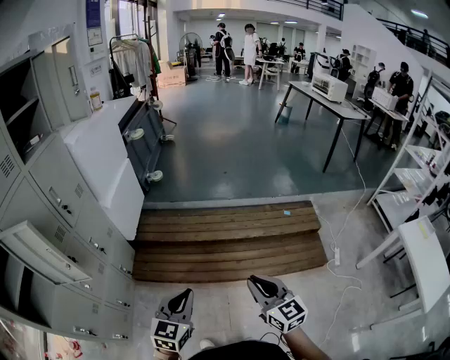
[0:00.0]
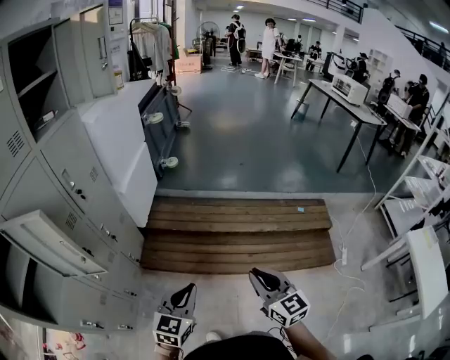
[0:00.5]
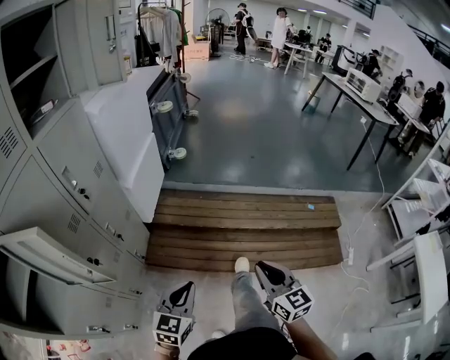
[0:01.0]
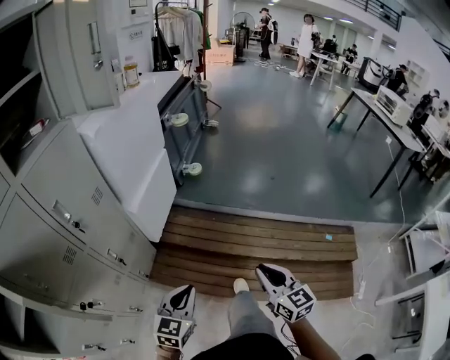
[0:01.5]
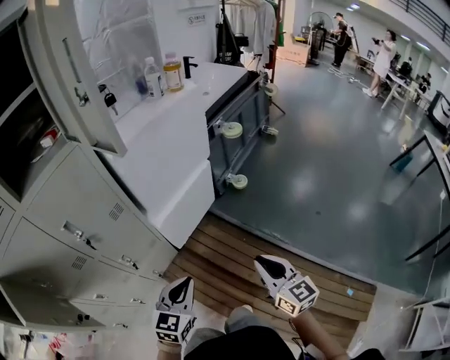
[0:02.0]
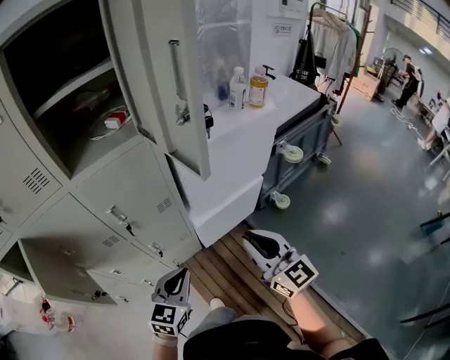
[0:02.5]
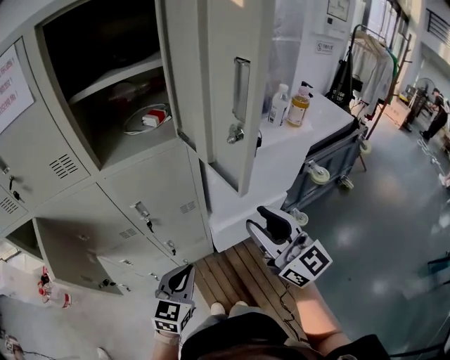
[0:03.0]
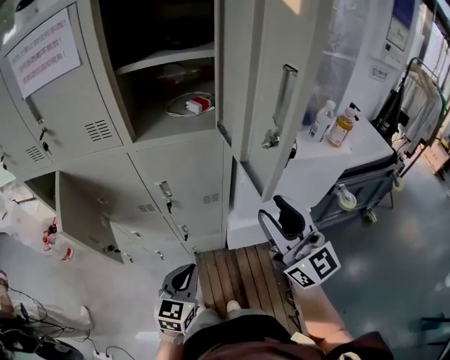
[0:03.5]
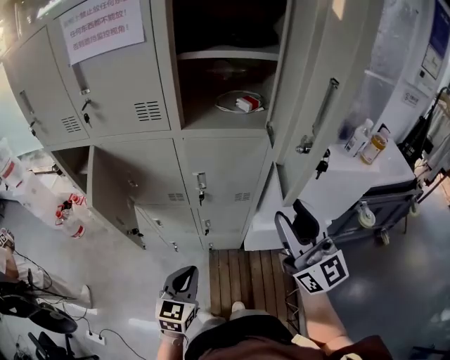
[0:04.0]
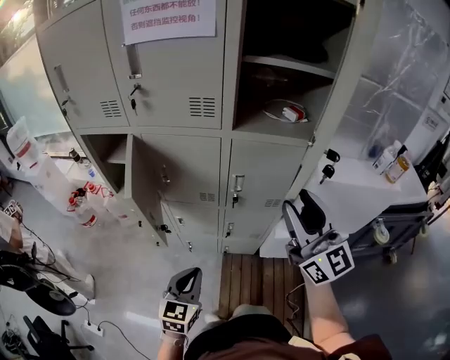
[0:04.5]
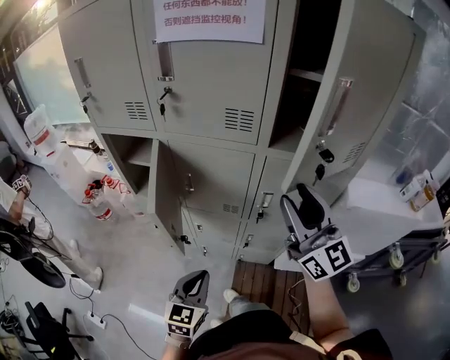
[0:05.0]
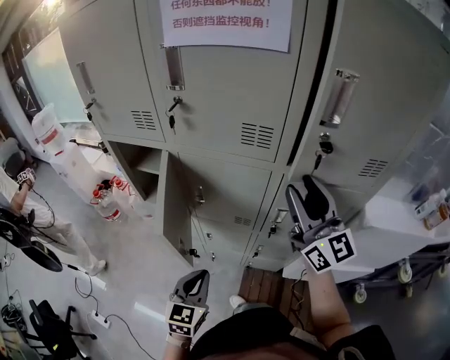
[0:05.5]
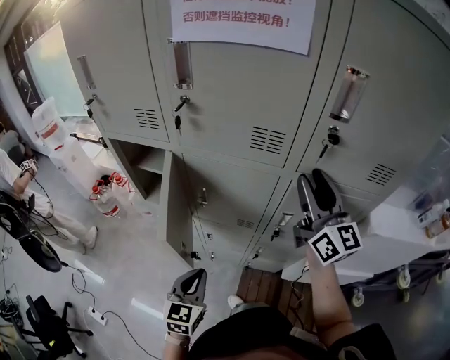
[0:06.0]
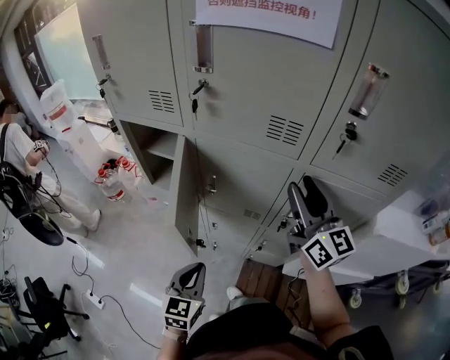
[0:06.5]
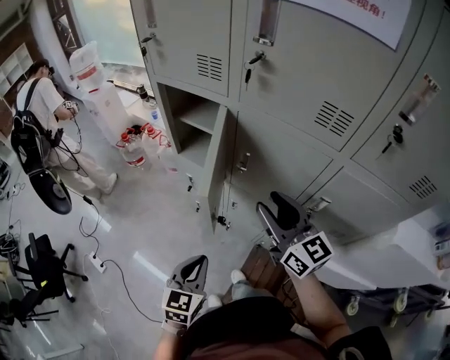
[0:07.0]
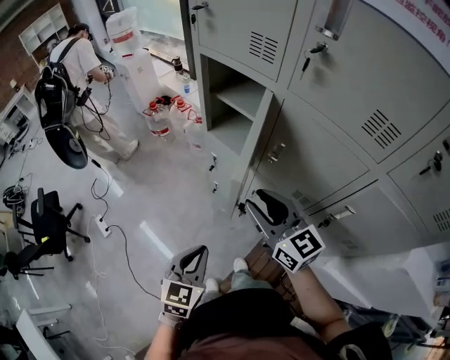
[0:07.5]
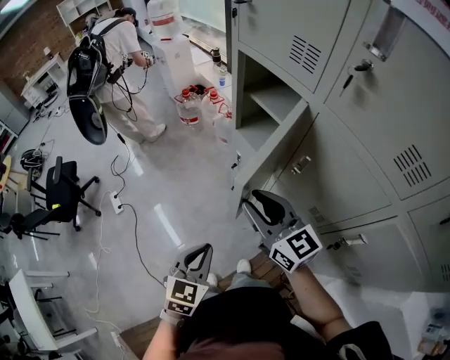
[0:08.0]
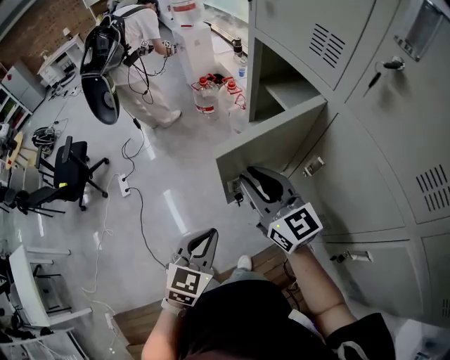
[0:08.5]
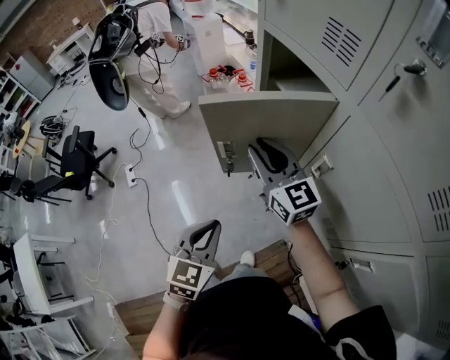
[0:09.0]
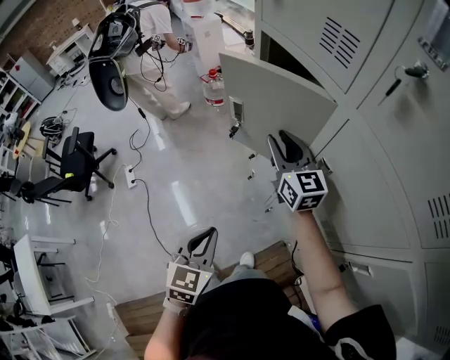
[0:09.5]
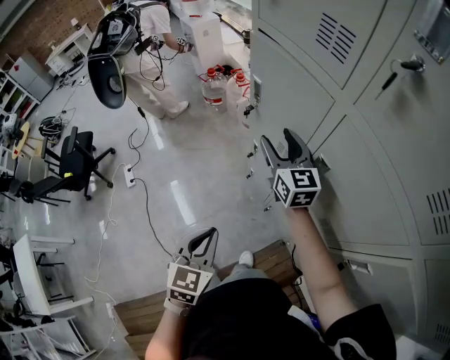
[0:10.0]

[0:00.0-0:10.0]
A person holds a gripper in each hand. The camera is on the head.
0:00.0 to 0:02.0: Both grippers are carried roughly 60 cm. The left gripper changes its angle by some 40 degrees, while the right gripper changes its angle by approximately 30 degrees.
0:02.0 to 0:04.0: The right gripper moves some 40 cm, changes its angle by approximately 60 degrees, and opens its fingers; the left gripper ends up about 20 cm from where it was, and swivels approximately 60 degrees.
0:04.0 to 0:06.0: The right gripper shifts some 30 cm forward and to the left. Meanwhile the left gripper travels to the left and forward by about 20 cm.
0:06.0 to 0:08.0: The left gripper shifts by about 15 cm, and turns by roughly 30 degrees, while the right gripper moves about 40 cm, and turns by about 60 degrees.
0:08.0 to 0:10.0: The right gripper shifts some 20 cm forward, and opens its fingers. Meanwhile the left gripper shifts by some 5 cm.

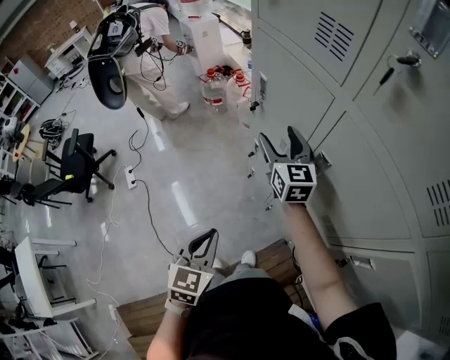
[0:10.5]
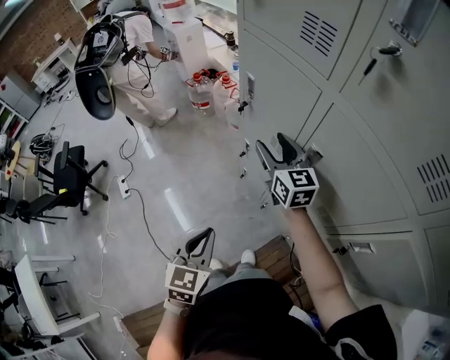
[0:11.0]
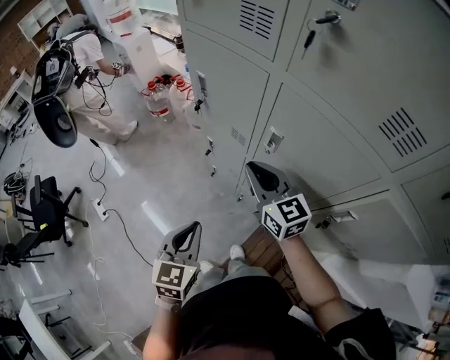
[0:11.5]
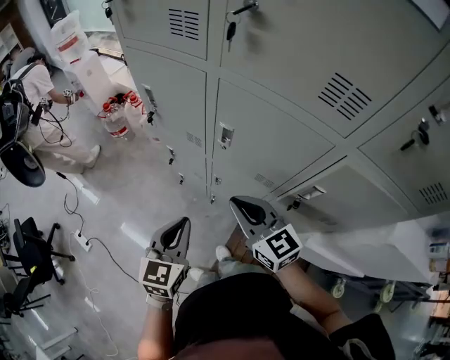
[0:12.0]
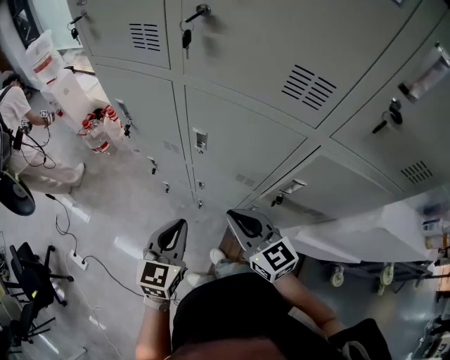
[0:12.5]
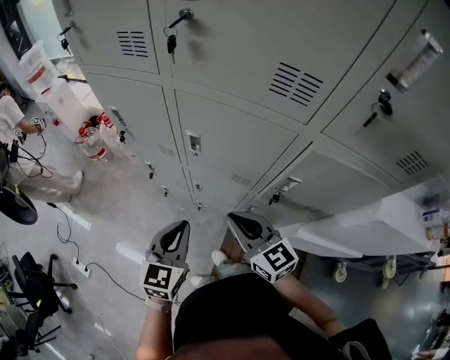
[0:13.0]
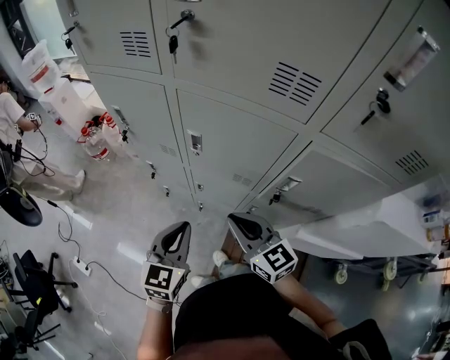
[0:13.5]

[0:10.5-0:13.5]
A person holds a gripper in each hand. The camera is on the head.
0:10.5 to 0:12.0: The left gripper heads to the right, covering approximately 5 cm, and changes its angle by some 30 degrees, while the right gripper shifts approximately 25 cm backward, and closes its fingers.
0:12.0 to 0:13.5: The left gripper moves some 5 cm. Meanwhile the right gripper ends up approximately 5 cm from where it was.

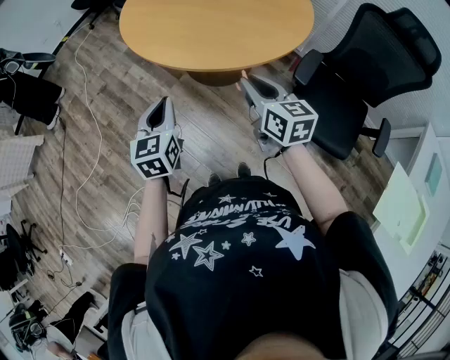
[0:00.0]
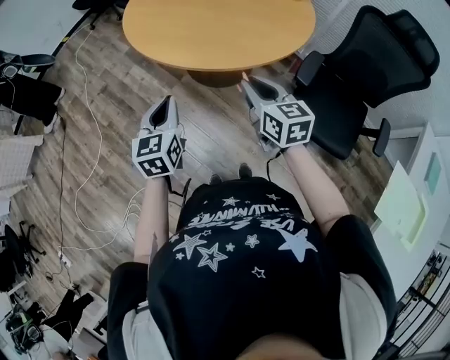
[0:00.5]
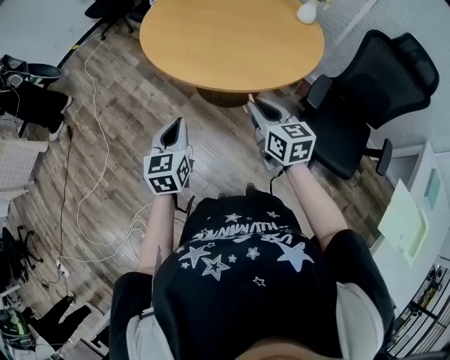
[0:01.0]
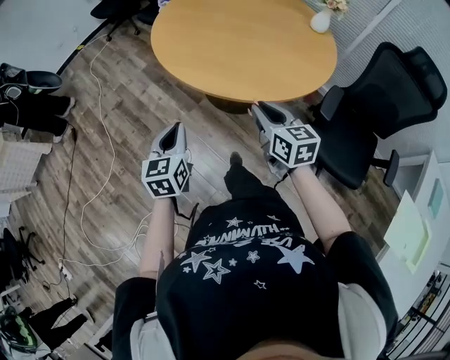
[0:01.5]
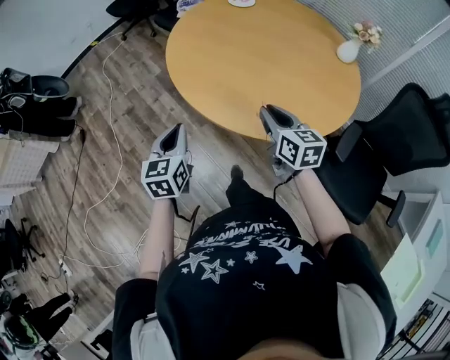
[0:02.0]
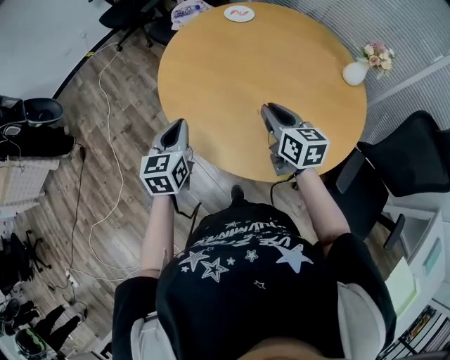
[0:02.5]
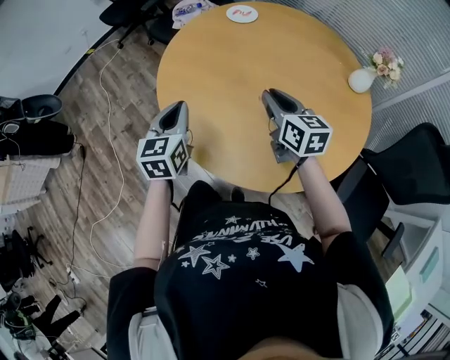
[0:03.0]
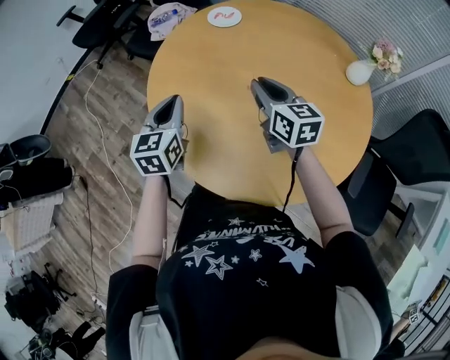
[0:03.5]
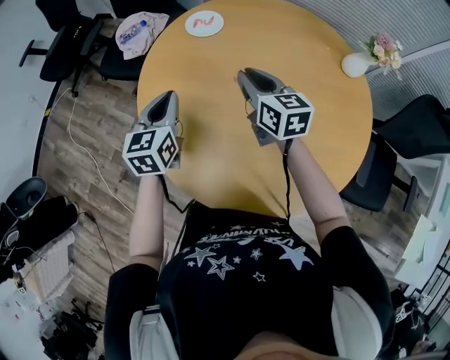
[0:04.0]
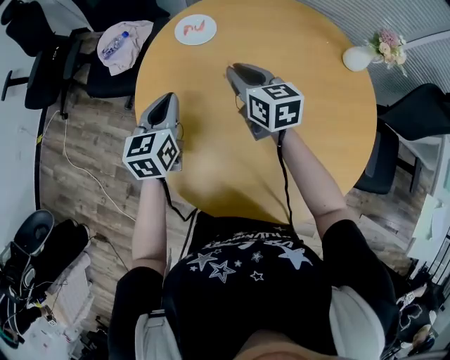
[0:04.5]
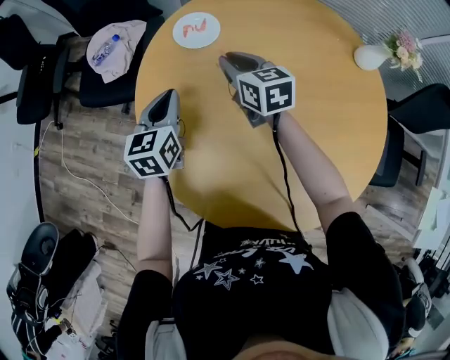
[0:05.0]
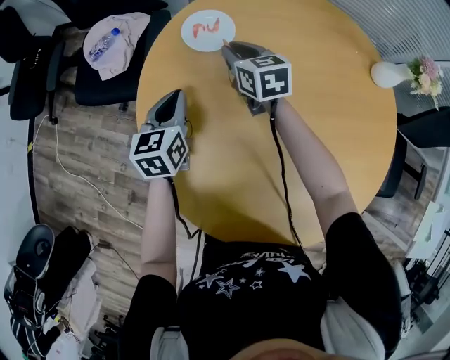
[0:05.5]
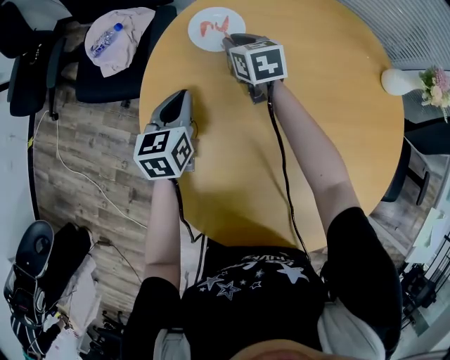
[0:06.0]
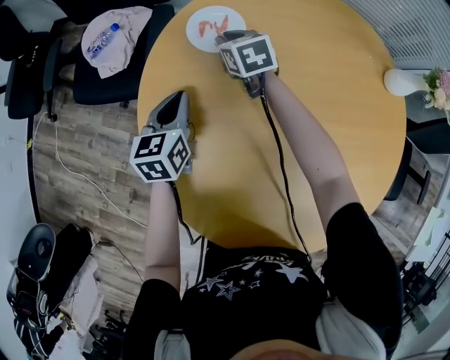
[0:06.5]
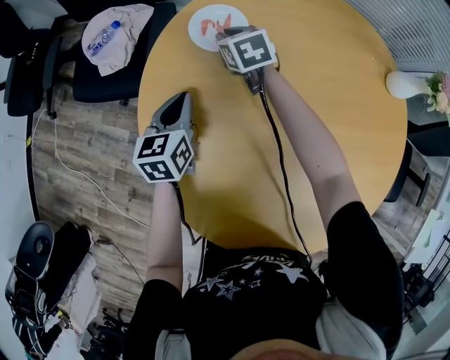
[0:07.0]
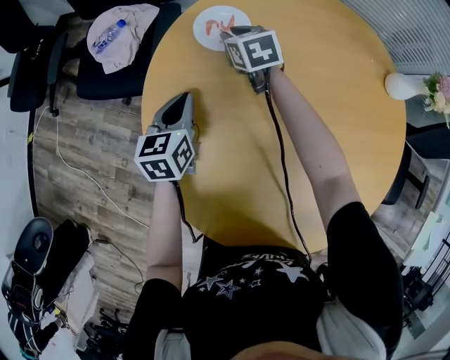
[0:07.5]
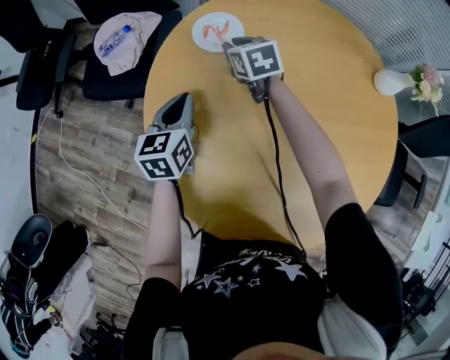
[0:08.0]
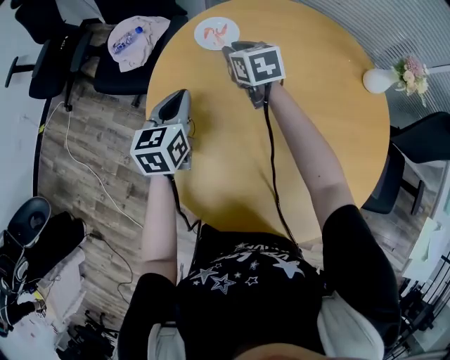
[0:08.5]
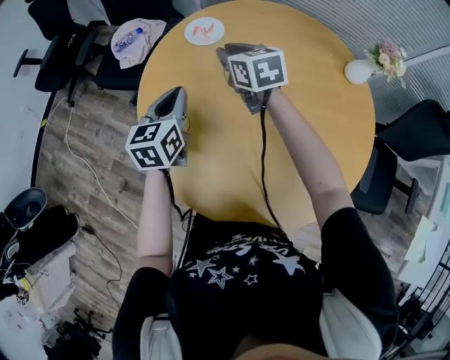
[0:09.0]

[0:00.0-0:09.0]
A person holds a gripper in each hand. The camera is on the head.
0:00.0 to 0:02.0: The two grippers go some 25 cm forward and to the left.
0:02.0 to 0:04.5: Both grippers are carried approximately 60 cm. The right gripper swivels about 20 degrees. Meanwhile the left gripper swivels some 30 degrees.
0:04.5 to 0:07.0: The left gripper is displaced downward and forward by approximately 20 cm. The right gripper shifts approximately 30 cm forward and downward, and swivels some 30 degrees.
0:07.0 to 0:09.0: The grippers both shift upward and backward by some 25 cm.

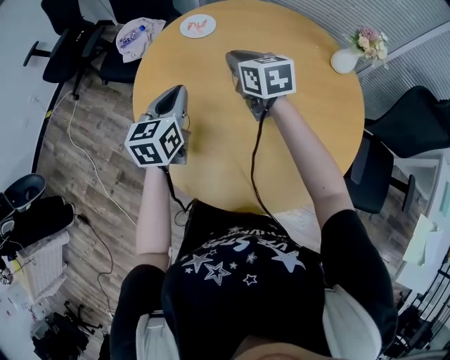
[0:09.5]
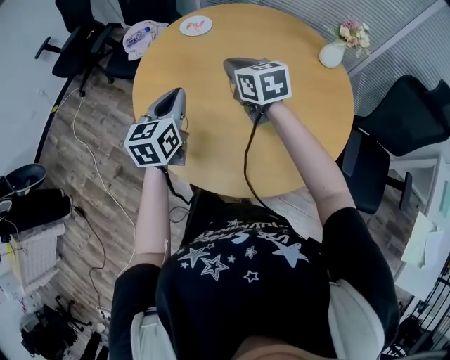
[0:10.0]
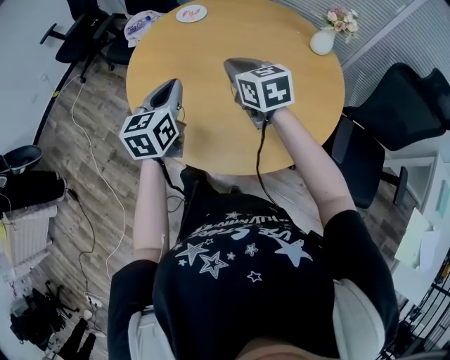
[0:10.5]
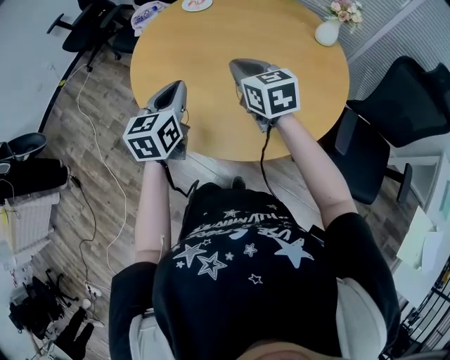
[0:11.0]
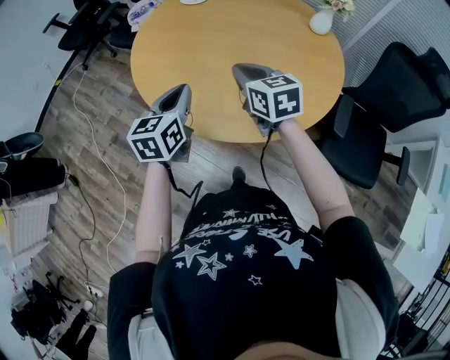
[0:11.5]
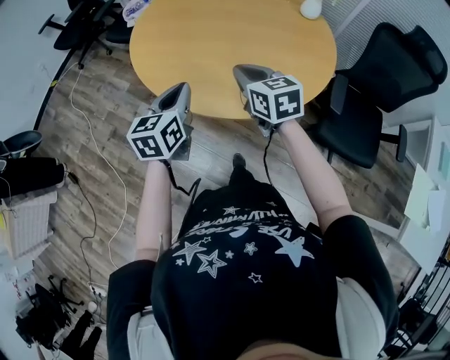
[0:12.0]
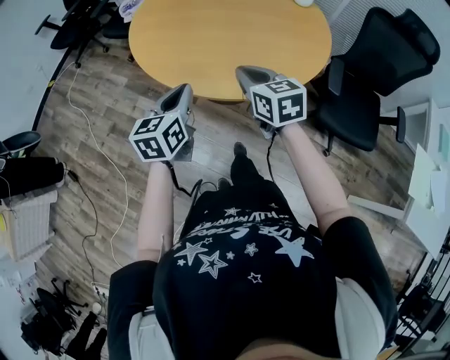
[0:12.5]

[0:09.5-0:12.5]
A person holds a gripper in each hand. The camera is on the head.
0:09.5 to 0:11.0: Both grippers move backward, approximately 25 cm.
0:11.0 to 0:12.5: The grippers both shift backward by some 20 cm.

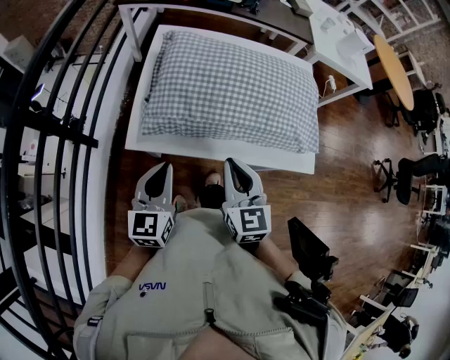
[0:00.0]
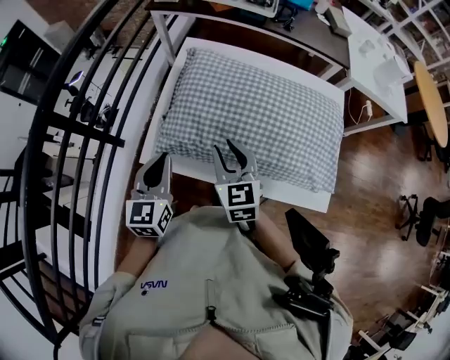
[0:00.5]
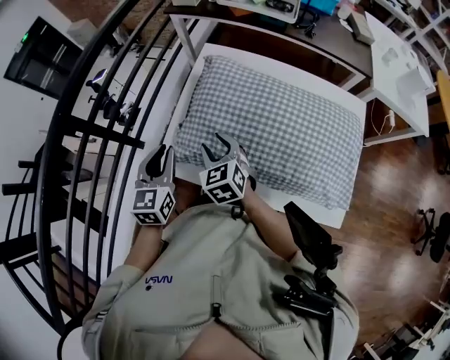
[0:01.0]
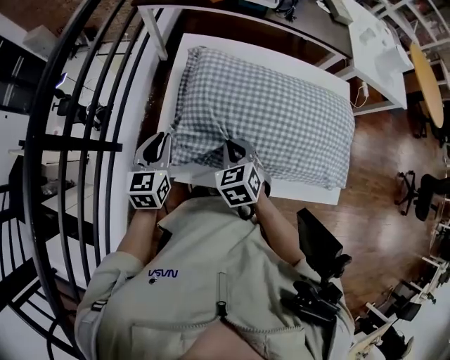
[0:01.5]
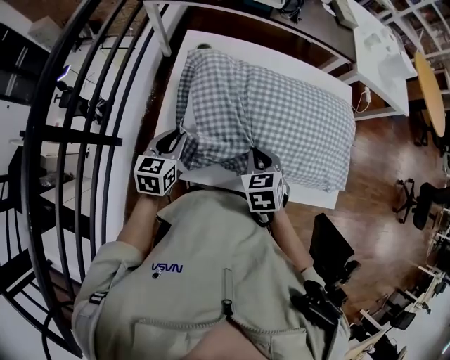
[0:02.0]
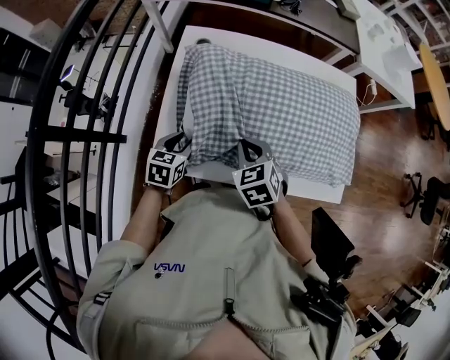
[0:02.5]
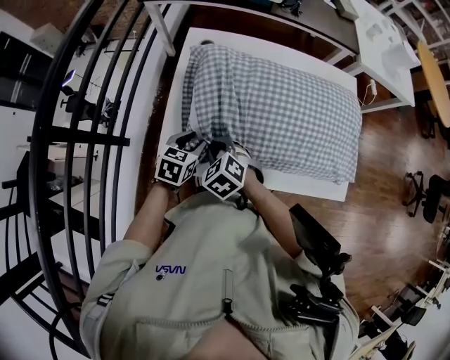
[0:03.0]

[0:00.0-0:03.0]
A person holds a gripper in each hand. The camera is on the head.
0:00.0 to 0:01.5: The right gripper moves forward and downward, some 20 cm, changes its angle by some 30 degrees, and opens and closes again. The left gripper moves forward, roughly 20 cm.
0:01.5 to 0:03.0: The left gripper travels downward and to the right by roughly 10 cm, and turns by roughly 30 degrees, while the right gripper travels to the left by some 5 cm, changes its angle by about 20 degrees, and opens up.
